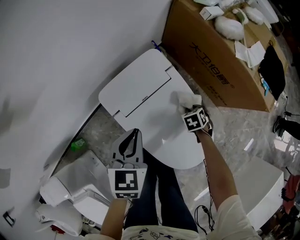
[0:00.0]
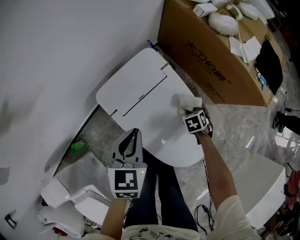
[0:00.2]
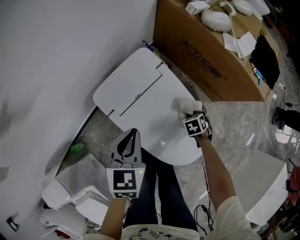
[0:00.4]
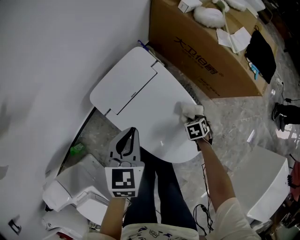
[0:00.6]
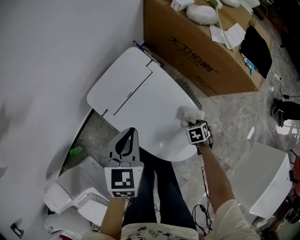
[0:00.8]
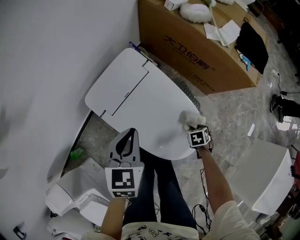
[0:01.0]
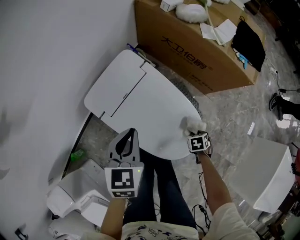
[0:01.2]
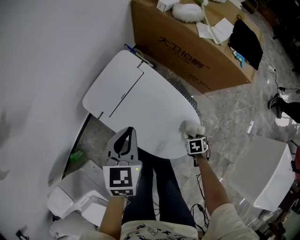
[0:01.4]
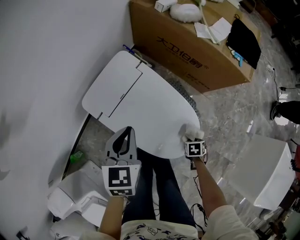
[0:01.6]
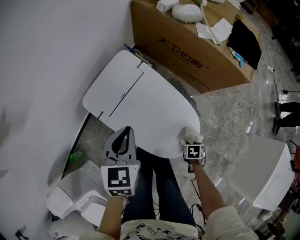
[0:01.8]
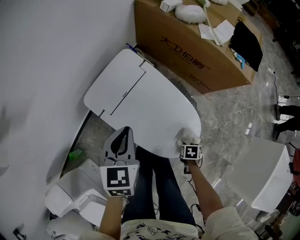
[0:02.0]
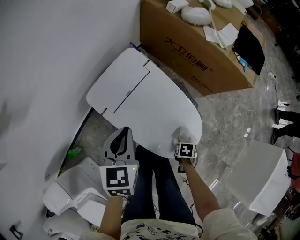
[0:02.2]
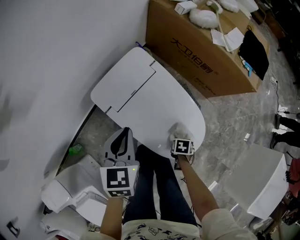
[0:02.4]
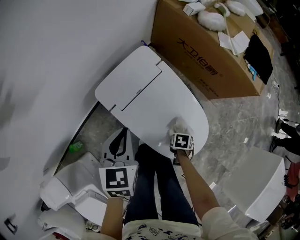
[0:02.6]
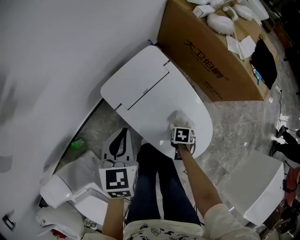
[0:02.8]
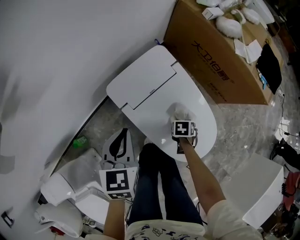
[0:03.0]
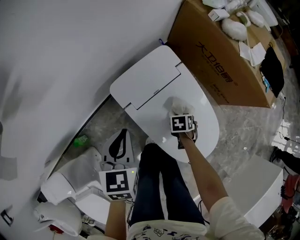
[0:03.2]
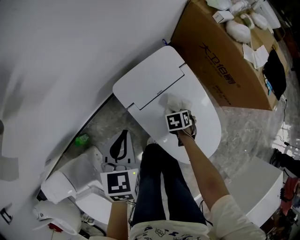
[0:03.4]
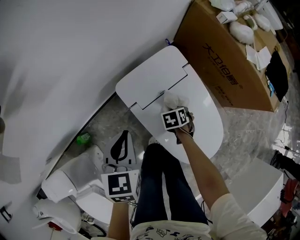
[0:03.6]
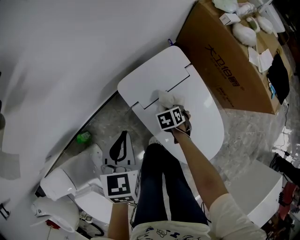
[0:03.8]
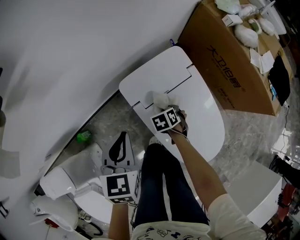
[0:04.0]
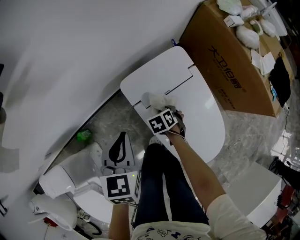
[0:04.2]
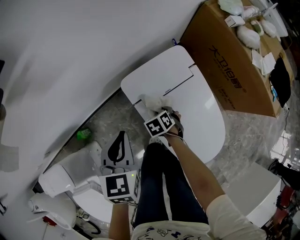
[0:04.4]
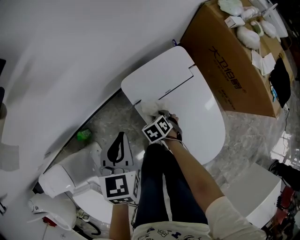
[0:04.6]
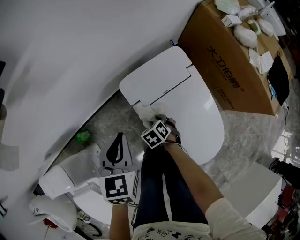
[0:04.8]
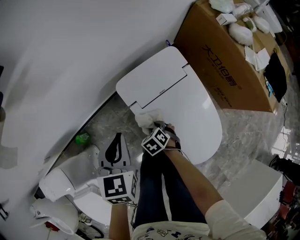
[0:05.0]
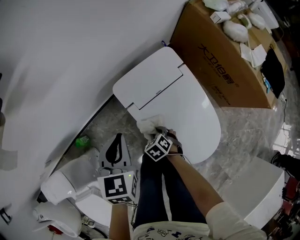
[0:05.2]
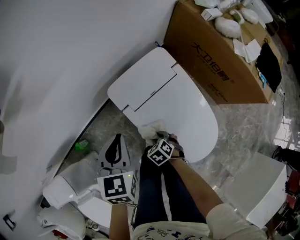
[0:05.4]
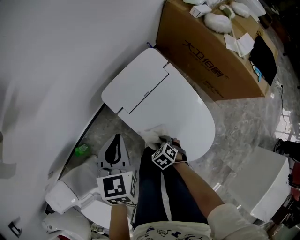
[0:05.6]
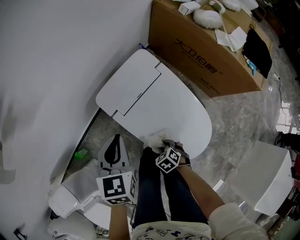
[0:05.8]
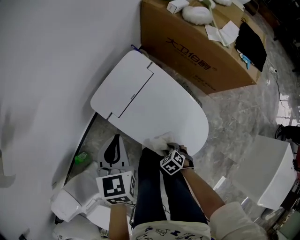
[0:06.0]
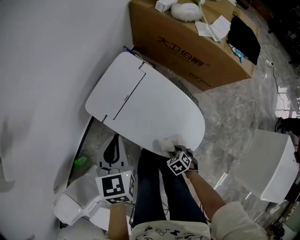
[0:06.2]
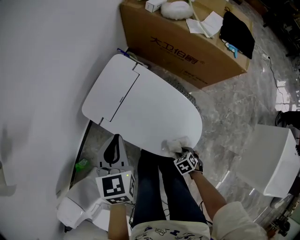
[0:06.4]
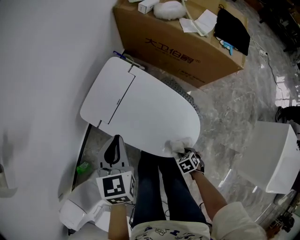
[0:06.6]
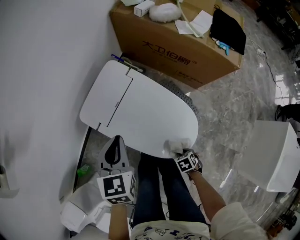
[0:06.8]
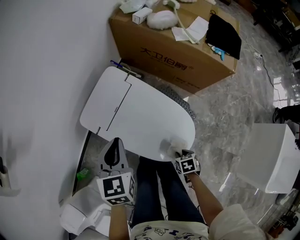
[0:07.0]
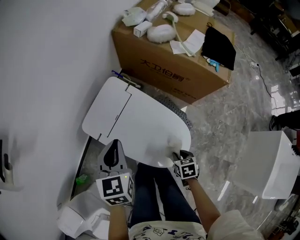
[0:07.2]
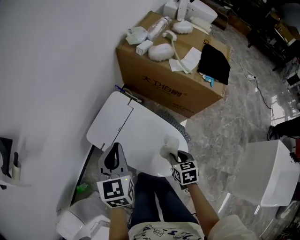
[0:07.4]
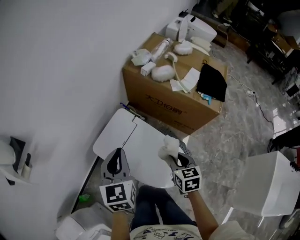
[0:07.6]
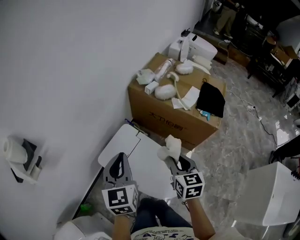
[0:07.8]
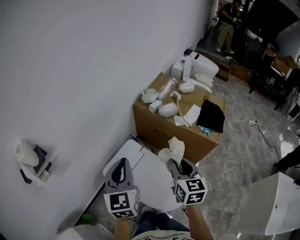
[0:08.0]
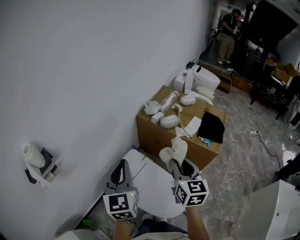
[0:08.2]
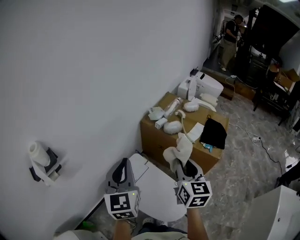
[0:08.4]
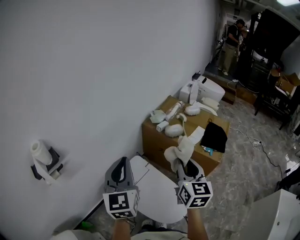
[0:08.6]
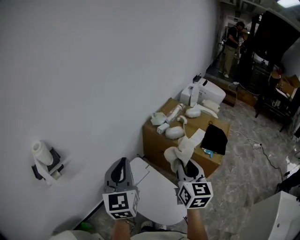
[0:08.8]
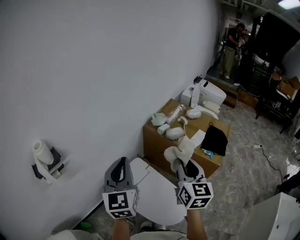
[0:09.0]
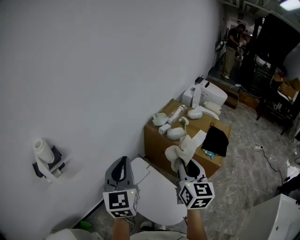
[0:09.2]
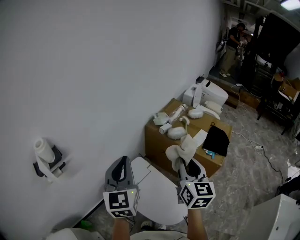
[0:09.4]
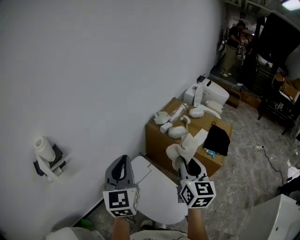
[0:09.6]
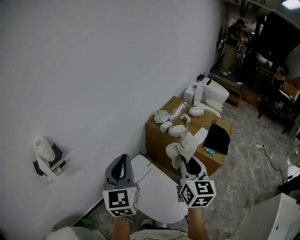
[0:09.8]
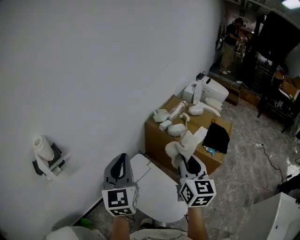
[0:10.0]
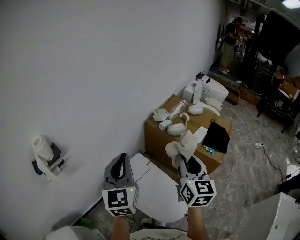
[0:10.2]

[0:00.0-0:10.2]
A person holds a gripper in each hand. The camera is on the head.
0:00.0 to 0:01.4: The left gripper moves some 10 cm. Meanwhile the right gripper moves approximately 25 cm, and rotates about 30 degrees.
0:01.4 to 0:03.0: The right gripper moves approximately 25 cm, while the left gripper shifts by approximately 15 cm.
0:03.0 to 0:04.4: The left gripper ends up roughly 5 cm from where it was; the right gripper changes place by about 20 cm, and rotates approximately 40 degrees.
0:04.4 to 0:05.8: The right gripper moves approximately 20 cm. The left gripper moves some 10 cm.
0:05.8 to 0:07.2: The left gripper shifts by approximately 10 cm. Meanwhile the right gripper changes place by some 20 cm, and rotates around the line of its fingers by approximately 50 degrees, clockwise from behind.
0:07.2 to 0:08.8: The left gripper travels upward by about 35 cm, and tilts its fingers about 30 degrees upward; the right gripper travels upward by about 50 cm, and points its fingers approximately 60 degrees further upward.
0:08.8 to 0:10.2: There are only small adjustments of the grippers.

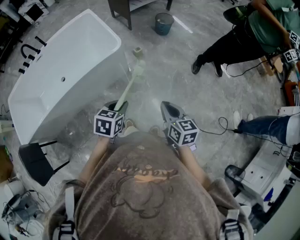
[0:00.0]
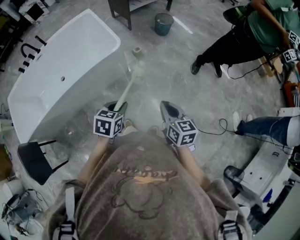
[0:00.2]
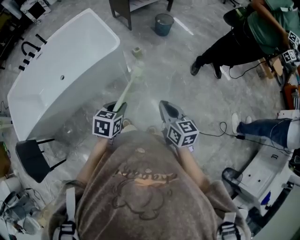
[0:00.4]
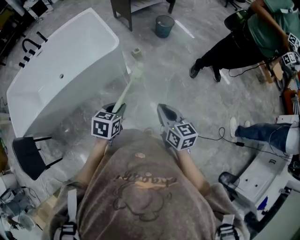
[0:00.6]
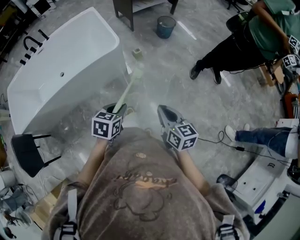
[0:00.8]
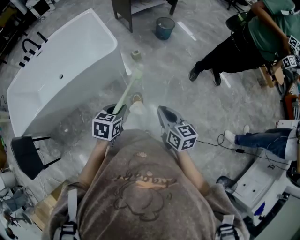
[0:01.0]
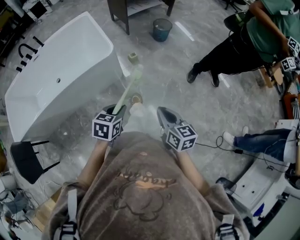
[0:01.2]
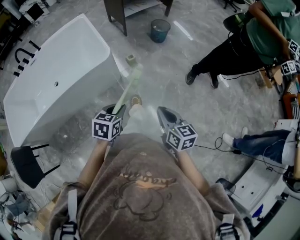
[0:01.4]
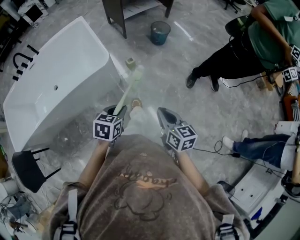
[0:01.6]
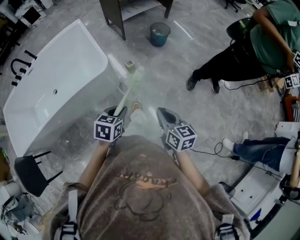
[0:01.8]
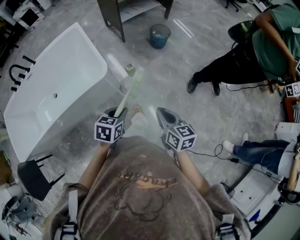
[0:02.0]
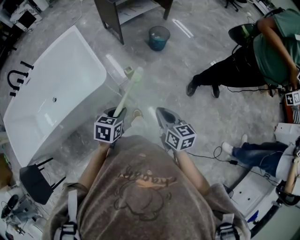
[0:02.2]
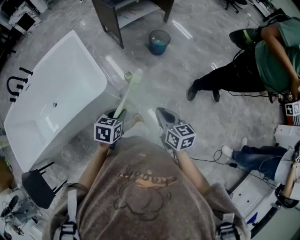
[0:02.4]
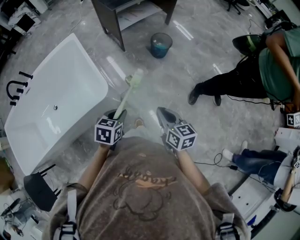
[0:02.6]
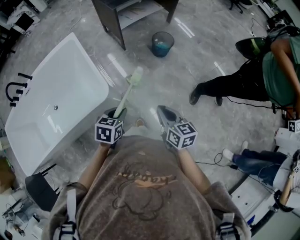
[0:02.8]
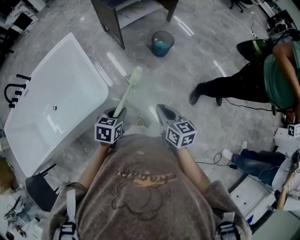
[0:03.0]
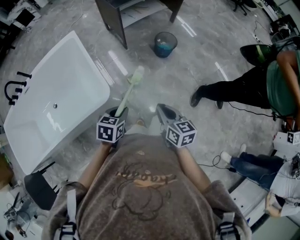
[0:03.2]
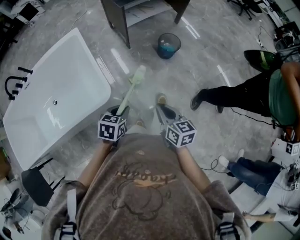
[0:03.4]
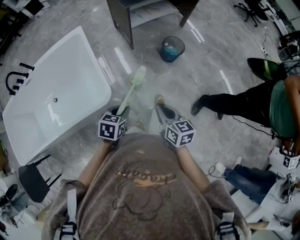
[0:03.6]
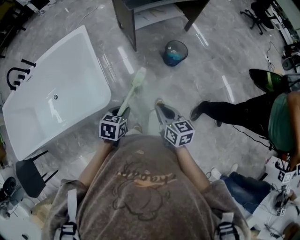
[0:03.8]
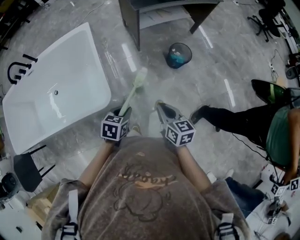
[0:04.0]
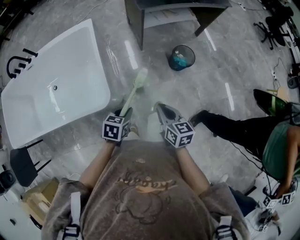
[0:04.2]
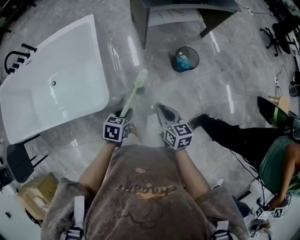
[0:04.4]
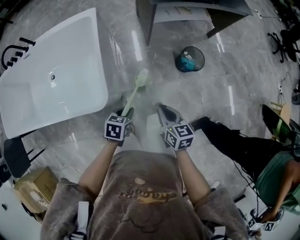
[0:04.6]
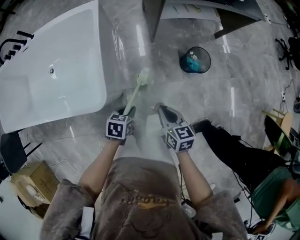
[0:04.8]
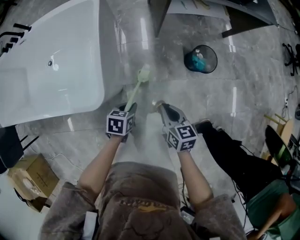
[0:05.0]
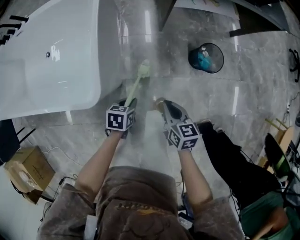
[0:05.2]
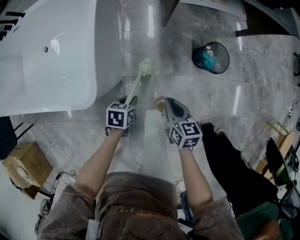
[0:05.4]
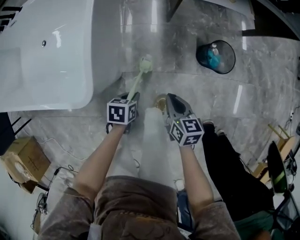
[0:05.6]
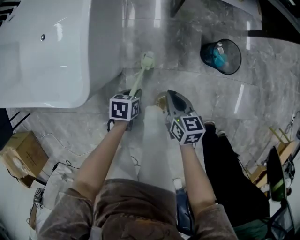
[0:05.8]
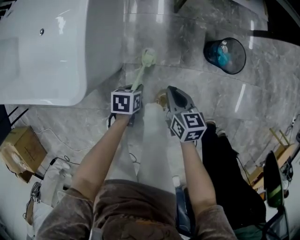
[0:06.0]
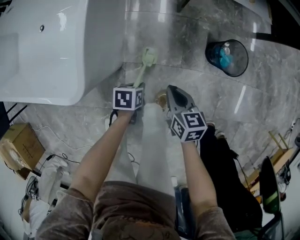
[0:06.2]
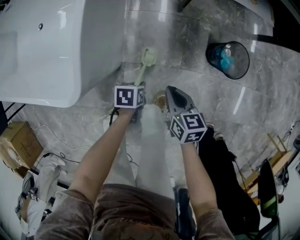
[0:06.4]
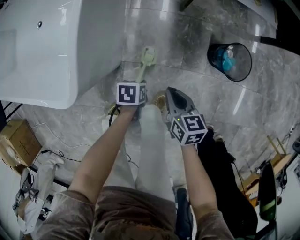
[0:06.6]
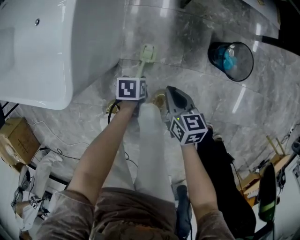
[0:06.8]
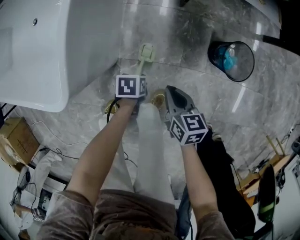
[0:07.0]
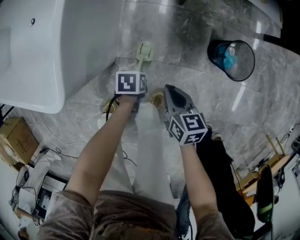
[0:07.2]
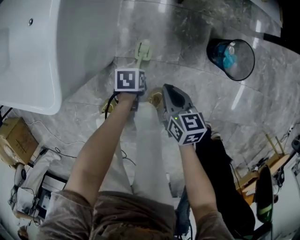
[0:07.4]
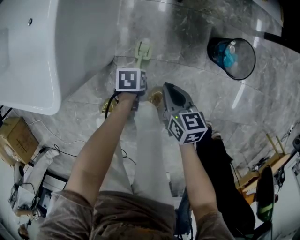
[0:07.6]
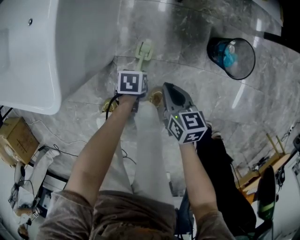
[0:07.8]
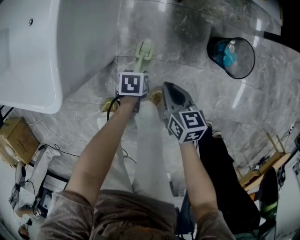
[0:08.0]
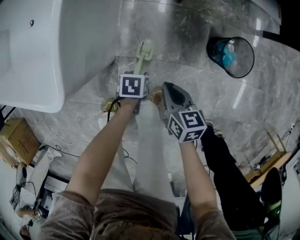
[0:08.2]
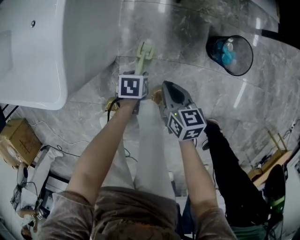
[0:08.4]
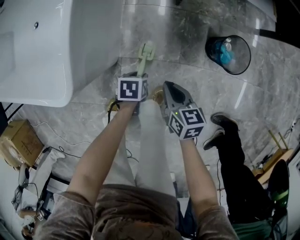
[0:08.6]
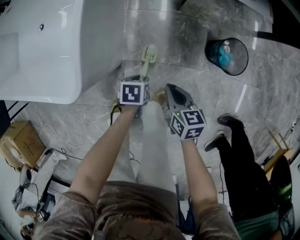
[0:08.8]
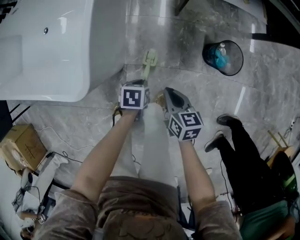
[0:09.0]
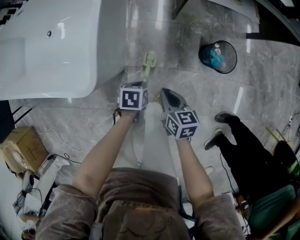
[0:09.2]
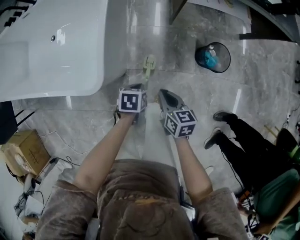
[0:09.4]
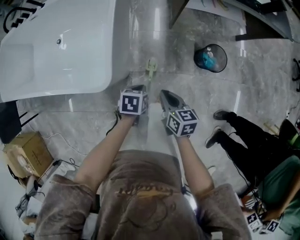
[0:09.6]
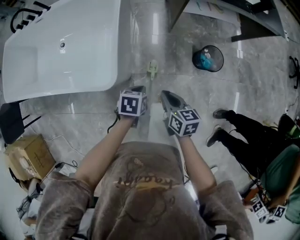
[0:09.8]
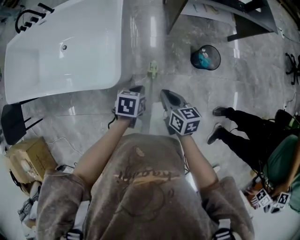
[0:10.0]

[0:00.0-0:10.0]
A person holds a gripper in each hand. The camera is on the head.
0:00.0 to 0:01.4: The grippers both shift to the right and forward by approximately 10 cm.
0:01.4 to 0:02.8: Both grippers move forward, approximately 30 cm.
0:02.8 to 0:04.2: The left gripper goes some 15 cm forward and downward. Meanwhile the right gripper shifts about 20 cm forward.
0:04.2 to 0:05.8: The right gripper moves downward and forward, some 30 cm. Meanwhile the left gripper travels downward by roughly 30 cm, and turns by about 30 degrees.
0:05.8 to 0:07.2: The left gripper shifts roughly 15 cm downward, while the right gripper is displaced downward by roughly 10 cm.
0:07.2 to 0:08.6: The left gripper moves upward, approximately 5 cm, and opens.
0:08.6 to 0:10.0: Both grippers travel together upward, roughly 35 cm. The left gripper swivels roughly 20 degrees, and closes up.

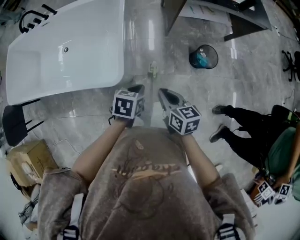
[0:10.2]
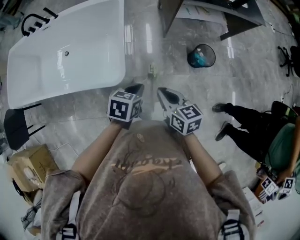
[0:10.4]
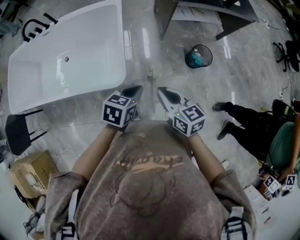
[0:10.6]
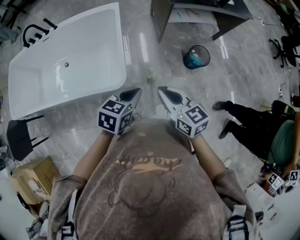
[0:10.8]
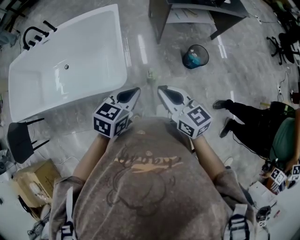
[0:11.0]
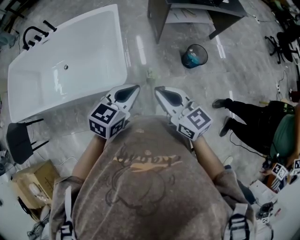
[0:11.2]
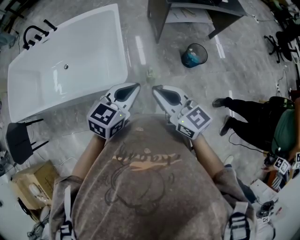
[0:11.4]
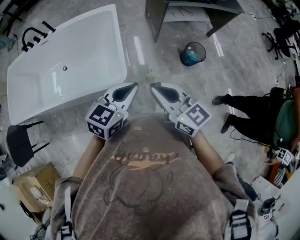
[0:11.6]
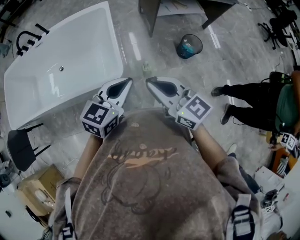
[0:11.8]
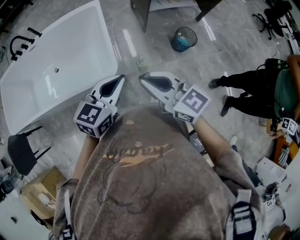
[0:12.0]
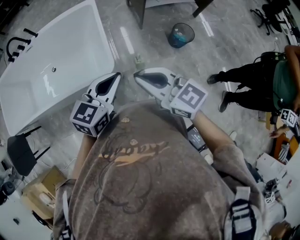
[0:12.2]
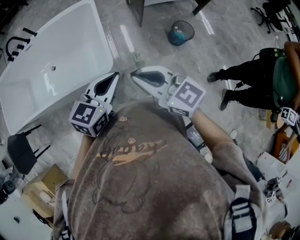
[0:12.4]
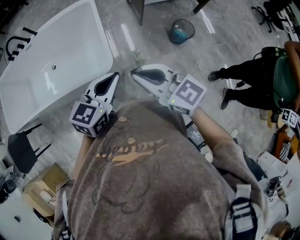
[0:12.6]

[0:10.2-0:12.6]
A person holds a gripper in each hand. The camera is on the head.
0:10.2 to 0:11.4: The left gripper moves upward, roughly 20 cm, and points its fingers approximately 30 degrees further upward, while the right gripper goes roughly 20 cm upward, backward and to the left, and turns by some 30 degrees.
0:11.4 to 0:12.6: There are only small adjustments of the grippers.

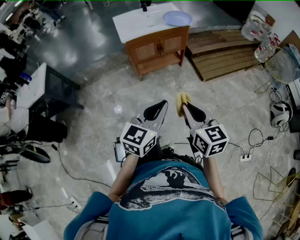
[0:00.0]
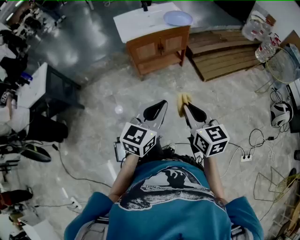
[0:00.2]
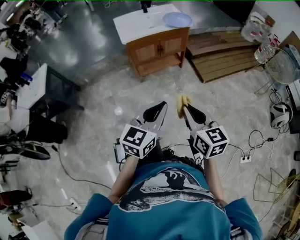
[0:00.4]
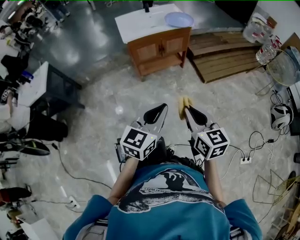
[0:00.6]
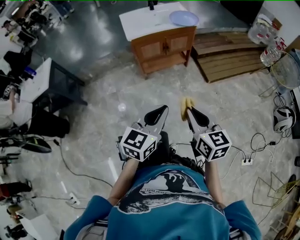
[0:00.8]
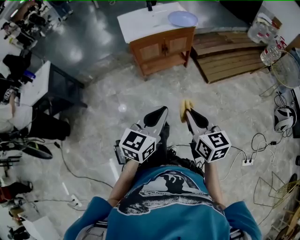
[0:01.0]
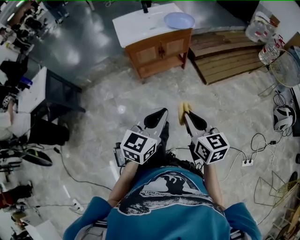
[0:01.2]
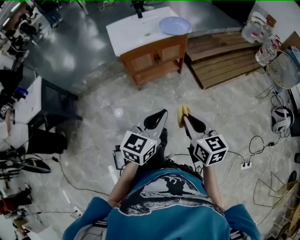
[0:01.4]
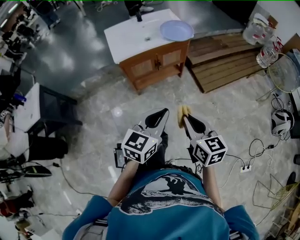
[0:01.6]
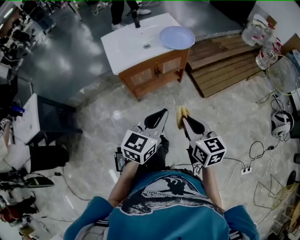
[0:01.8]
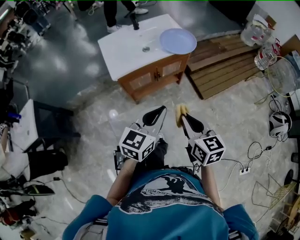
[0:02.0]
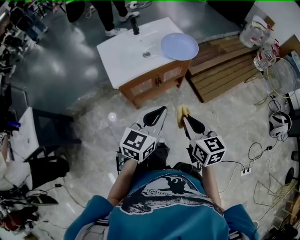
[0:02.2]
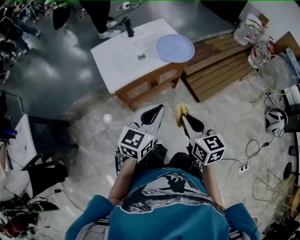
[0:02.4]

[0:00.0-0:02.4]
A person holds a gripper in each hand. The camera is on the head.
0:00.0 to 0:01.2: The grippers stay close to where they were, moving slightly.
0:01.2 to 0:02.4: The grippers both shift forward by roughly 30 cm.
